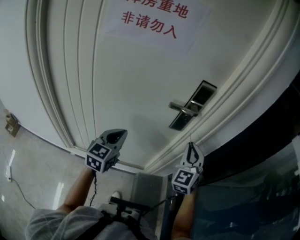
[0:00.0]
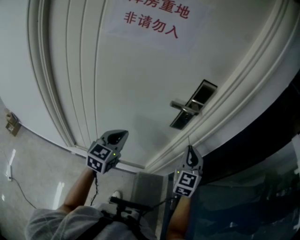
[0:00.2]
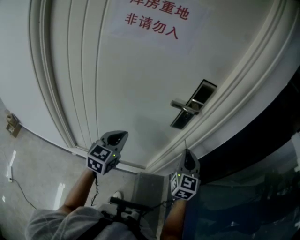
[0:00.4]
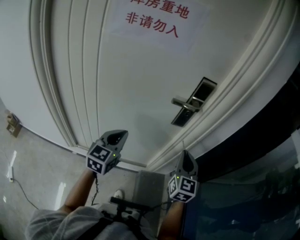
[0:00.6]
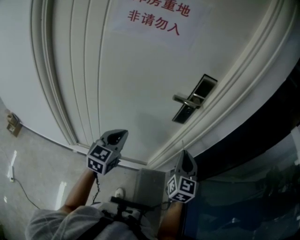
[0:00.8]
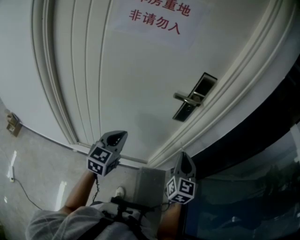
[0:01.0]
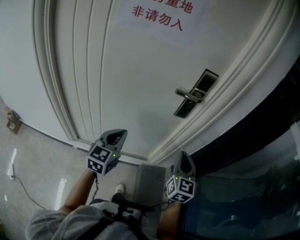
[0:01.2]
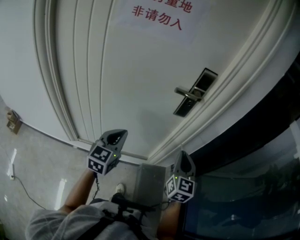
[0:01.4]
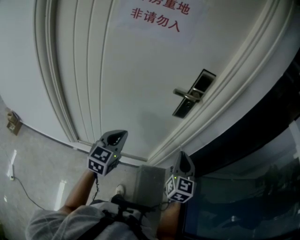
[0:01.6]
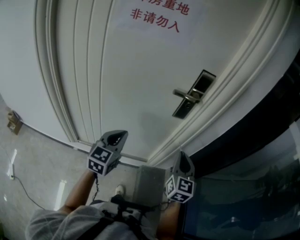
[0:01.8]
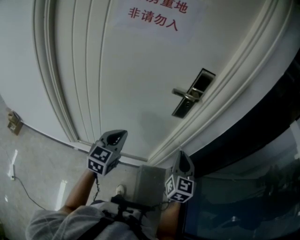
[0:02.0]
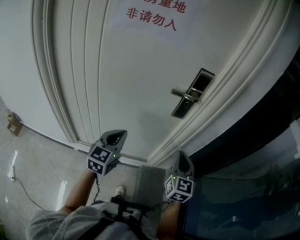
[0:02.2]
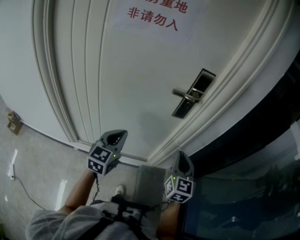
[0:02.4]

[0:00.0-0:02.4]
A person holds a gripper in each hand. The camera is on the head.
0:00.0 to 0:01.2: The right gripper heads backward and downward, covering roughly 10 cm, and swivels some 30 degrees, while the left gripper is displaced backward by about 5 cm.
0:01.2 to 0:02.4: The two grippers keep their place.

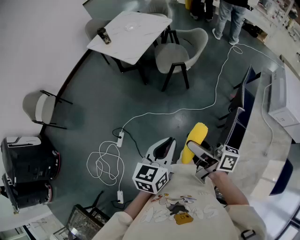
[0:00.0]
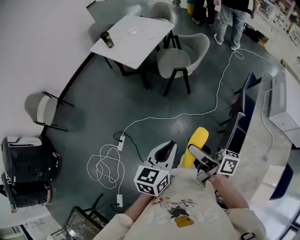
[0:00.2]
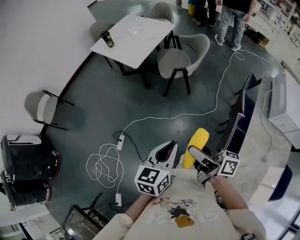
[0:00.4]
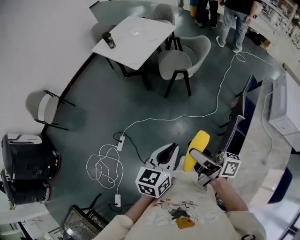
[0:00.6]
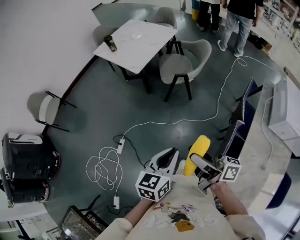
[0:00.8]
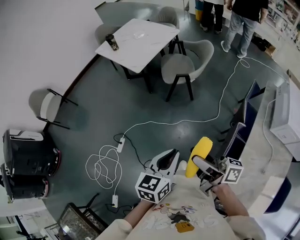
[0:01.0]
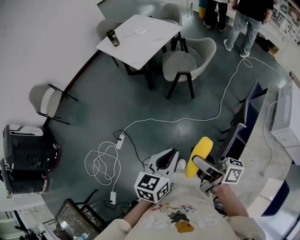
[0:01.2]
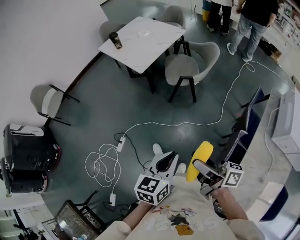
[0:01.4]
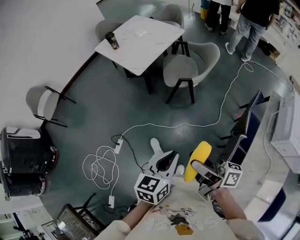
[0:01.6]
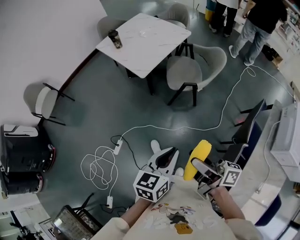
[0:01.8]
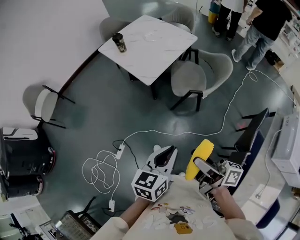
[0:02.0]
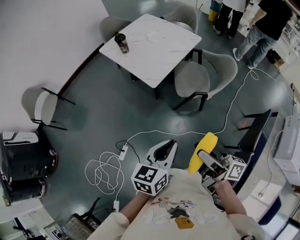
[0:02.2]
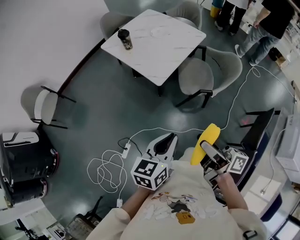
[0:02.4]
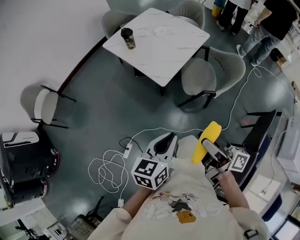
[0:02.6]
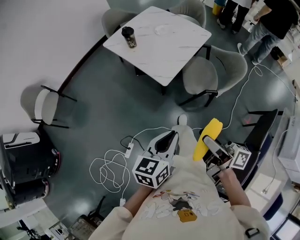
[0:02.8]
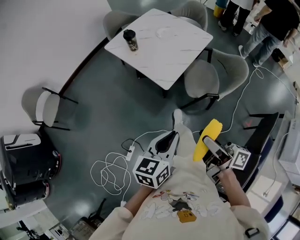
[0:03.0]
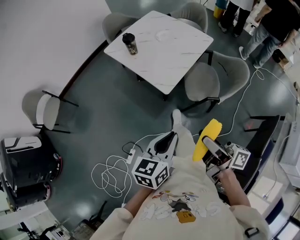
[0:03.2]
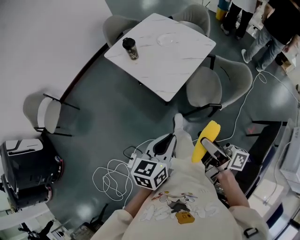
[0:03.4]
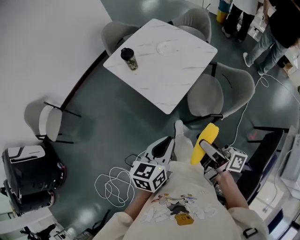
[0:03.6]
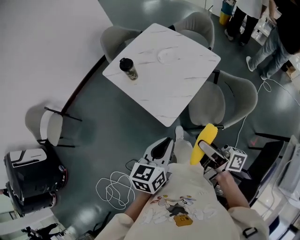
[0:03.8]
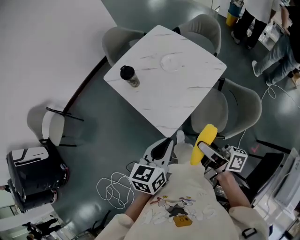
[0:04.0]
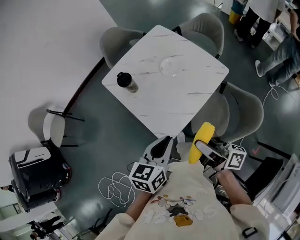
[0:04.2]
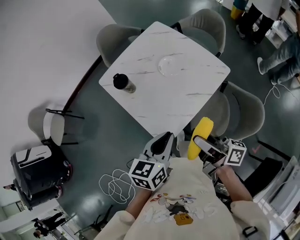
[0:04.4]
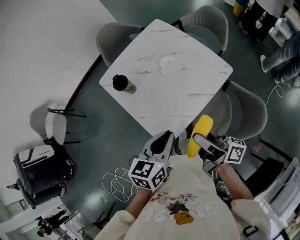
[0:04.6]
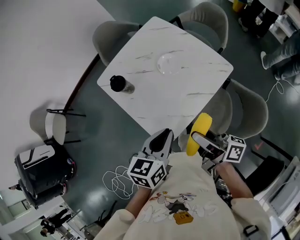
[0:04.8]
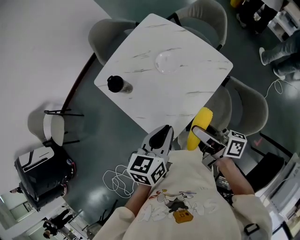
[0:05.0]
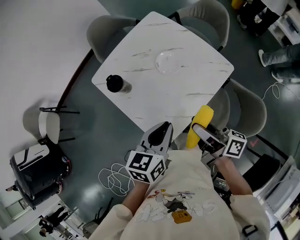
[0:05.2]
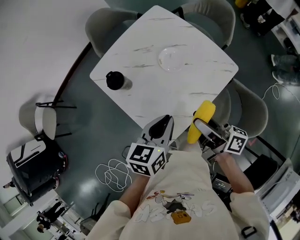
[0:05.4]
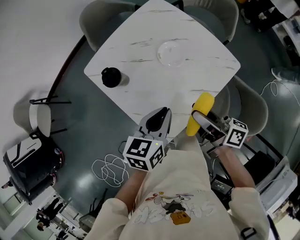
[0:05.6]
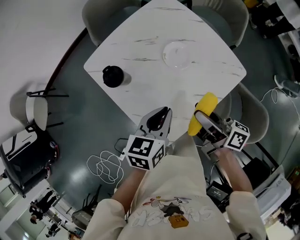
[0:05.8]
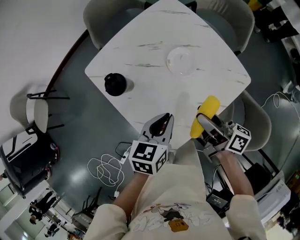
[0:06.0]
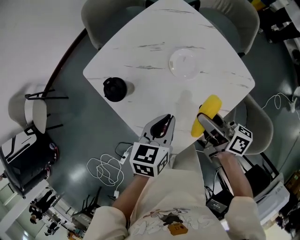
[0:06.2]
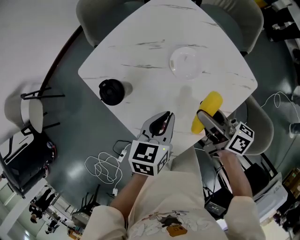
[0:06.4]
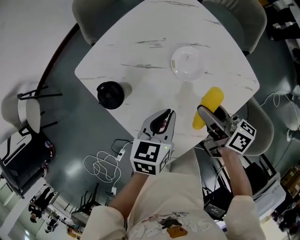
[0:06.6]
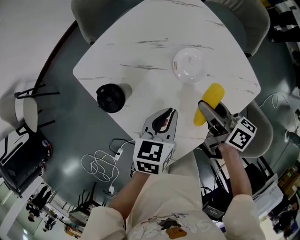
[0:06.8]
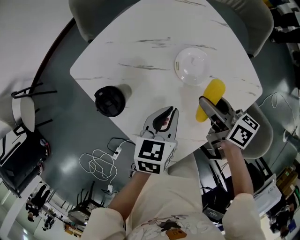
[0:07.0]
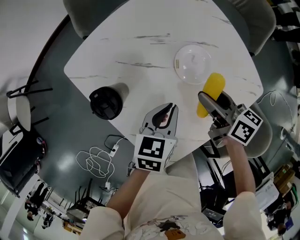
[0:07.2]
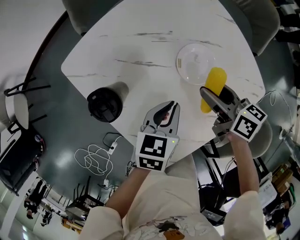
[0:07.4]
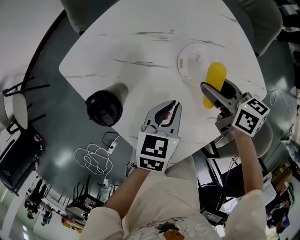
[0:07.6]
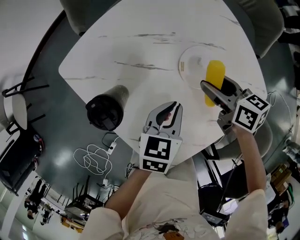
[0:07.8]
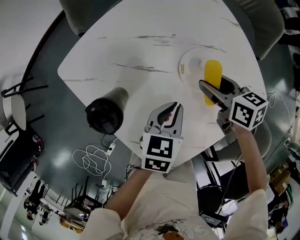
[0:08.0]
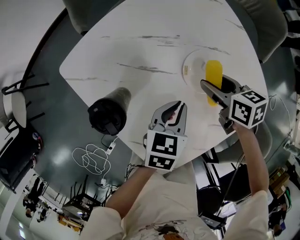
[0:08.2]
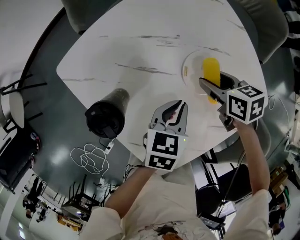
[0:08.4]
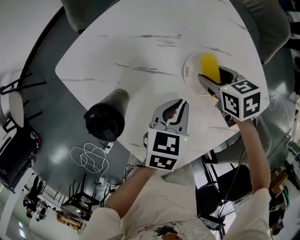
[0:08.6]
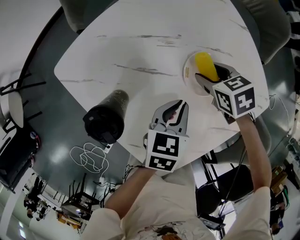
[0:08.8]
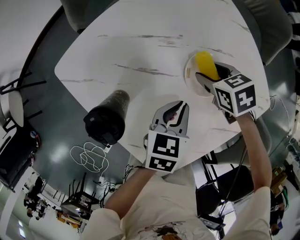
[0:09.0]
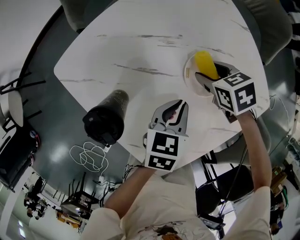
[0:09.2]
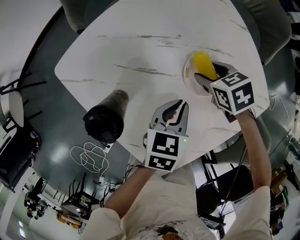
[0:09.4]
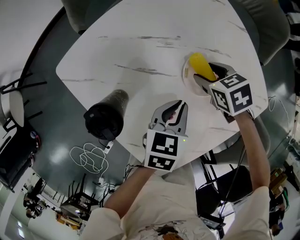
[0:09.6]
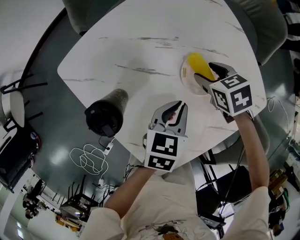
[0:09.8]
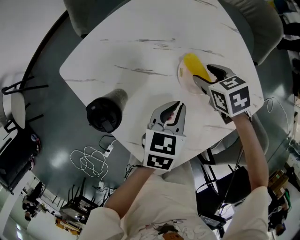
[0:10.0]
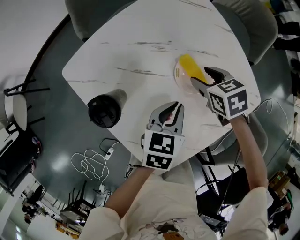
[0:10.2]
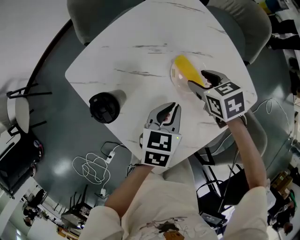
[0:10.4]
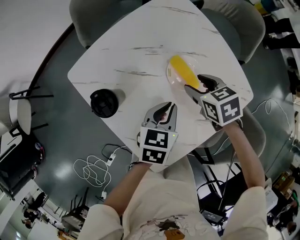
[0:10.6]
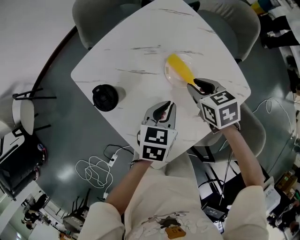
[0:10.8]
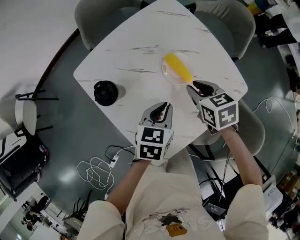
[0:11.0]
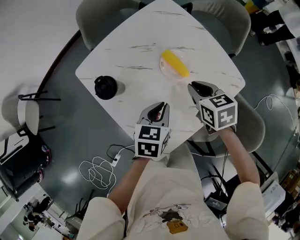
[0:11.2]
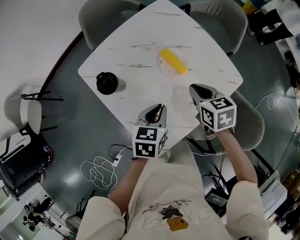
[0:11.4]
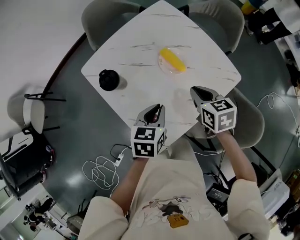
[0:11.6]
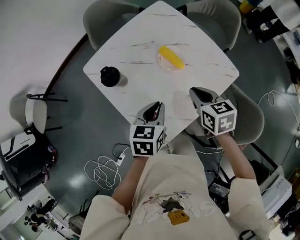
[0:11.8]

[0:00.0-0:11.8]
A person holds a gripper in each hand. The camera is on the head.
0:00.0 to 0:01.4: The right gripper heads to the right, covering roughly 5 cm, while the left gripper changes place by about 5 cm.
0:01.4 to 0:03.0: The grippers both shift forward and to the left by roughly 40 cm.
0:03.0 to 0:04.4: The pair of grippers is taken forward, roughly 40 cm.
0:04.4 to 0:06.0: The two grippers go roughly 25 cm forward and downward.
0:06.0 to 0:07.4: The right gripper heads forward and downward, covering approximately 20 cm, and rotates some 30 degrees; the left gripper moves downward and forward, about 15 cm.
0:07.4 to 0:08.8: The right gripper is displaced downward and forward by roughly 10 cm, and points its fingers approximately 30 degrees further downward, while the left gripper changes place by some 5 cm.
0:08.8 to 0:10.4: Both grippers travel together upward, about 5 cm.
0:10.4 to 0:11.8: Both grippers move backward and upward, roughly 20 cm. The right gripper turns by some 20 degrees, and closes up.

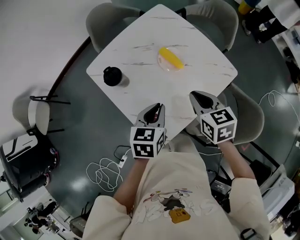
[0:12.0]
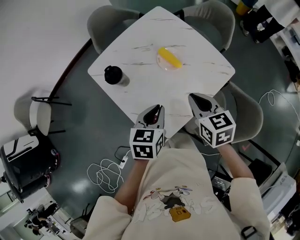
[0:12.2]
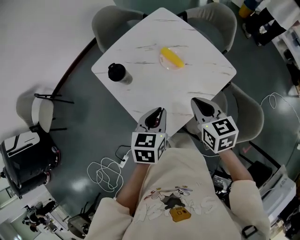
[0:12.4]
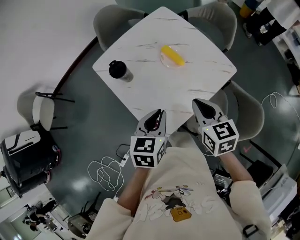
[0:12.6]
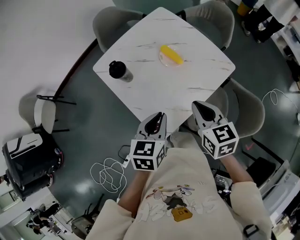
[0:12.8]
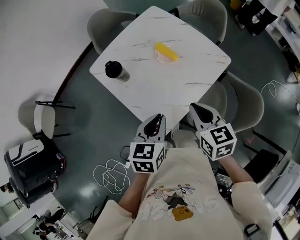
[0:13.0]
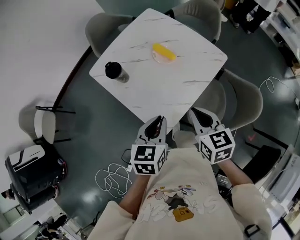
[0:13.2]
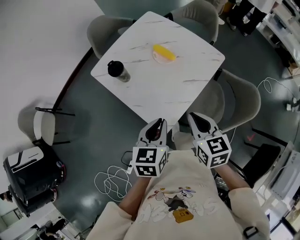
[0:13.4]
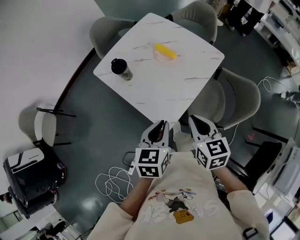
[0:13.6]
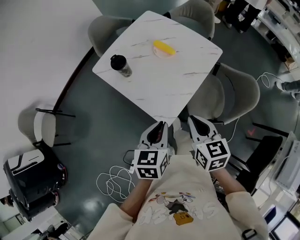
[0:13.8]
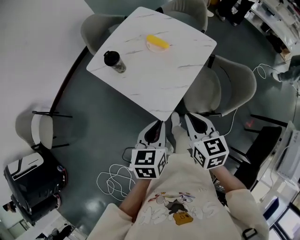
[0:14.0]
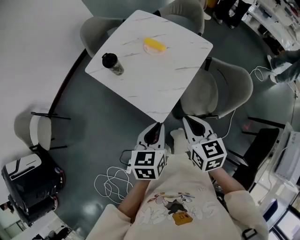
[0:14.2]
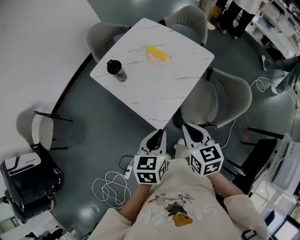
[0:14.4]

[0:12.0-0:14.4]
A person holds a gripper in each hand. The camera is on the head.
0:12.0 to 0:13.2: The right gripper goes about 15 cm backward; the left gripper goes roughly 15 cm backward and upward.
0:13.2 to 0:14.4: The grippers both shift backward by roughly 15 cm.

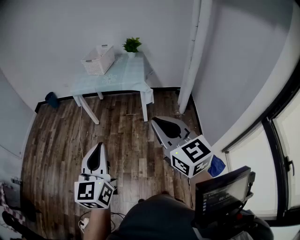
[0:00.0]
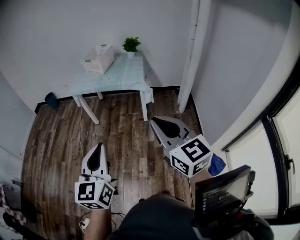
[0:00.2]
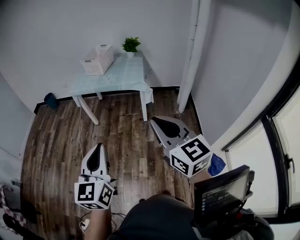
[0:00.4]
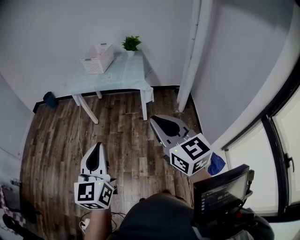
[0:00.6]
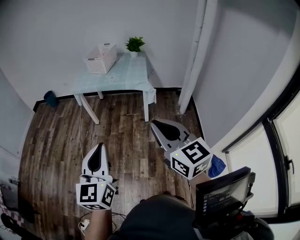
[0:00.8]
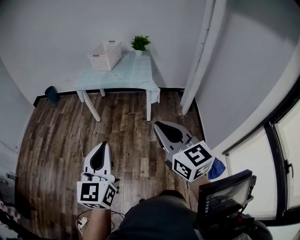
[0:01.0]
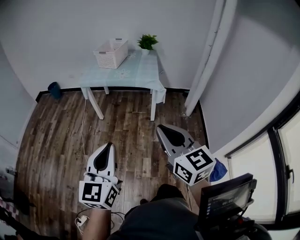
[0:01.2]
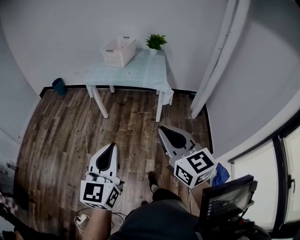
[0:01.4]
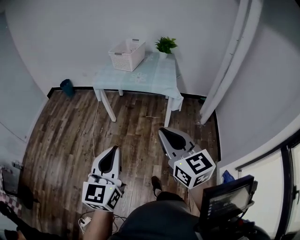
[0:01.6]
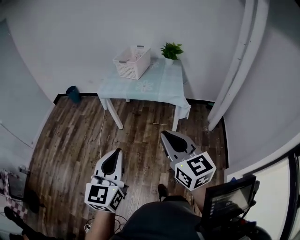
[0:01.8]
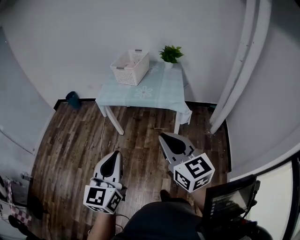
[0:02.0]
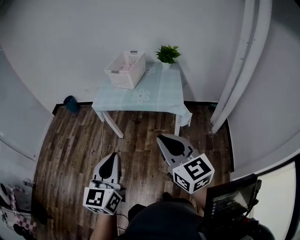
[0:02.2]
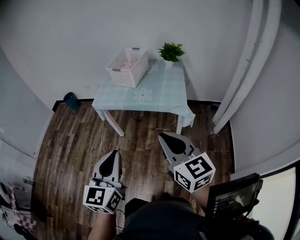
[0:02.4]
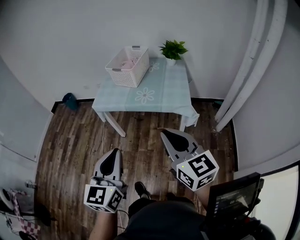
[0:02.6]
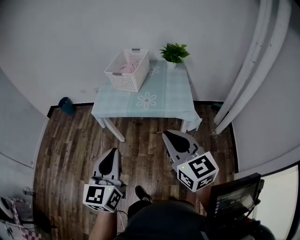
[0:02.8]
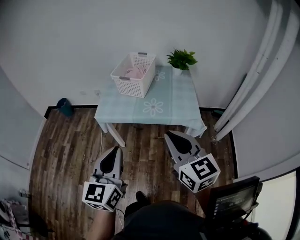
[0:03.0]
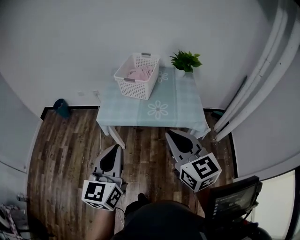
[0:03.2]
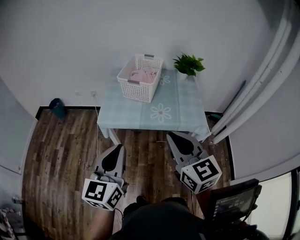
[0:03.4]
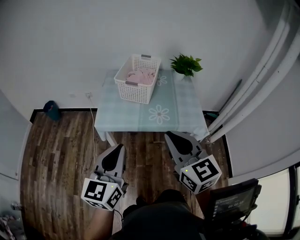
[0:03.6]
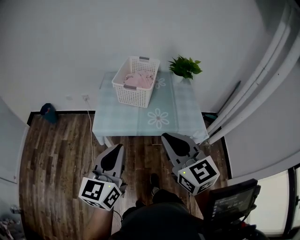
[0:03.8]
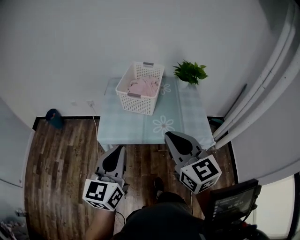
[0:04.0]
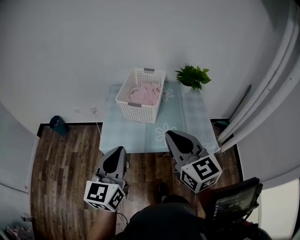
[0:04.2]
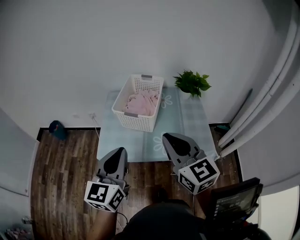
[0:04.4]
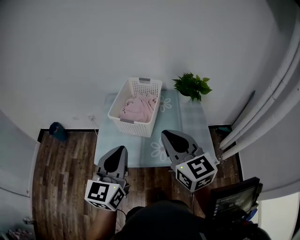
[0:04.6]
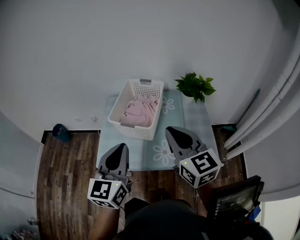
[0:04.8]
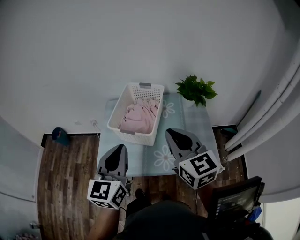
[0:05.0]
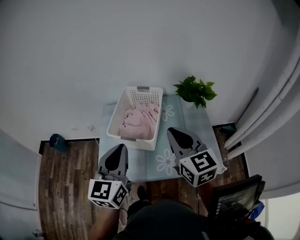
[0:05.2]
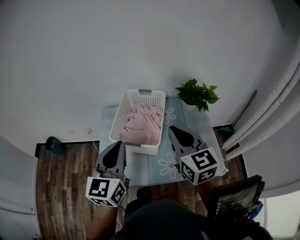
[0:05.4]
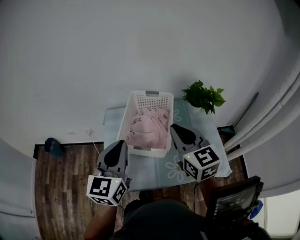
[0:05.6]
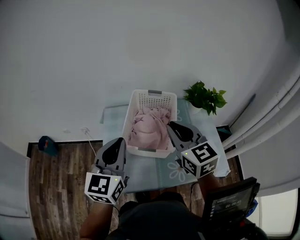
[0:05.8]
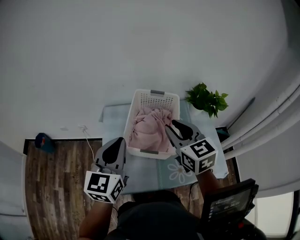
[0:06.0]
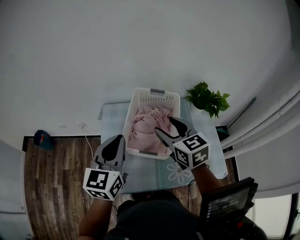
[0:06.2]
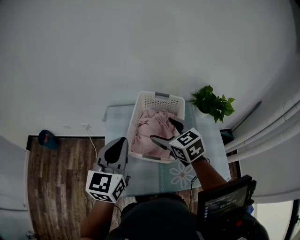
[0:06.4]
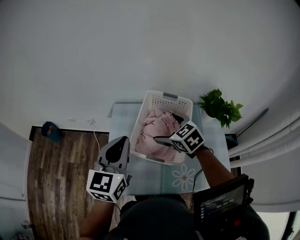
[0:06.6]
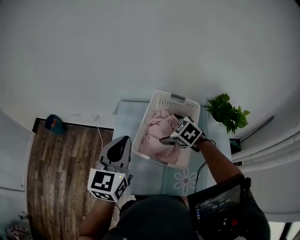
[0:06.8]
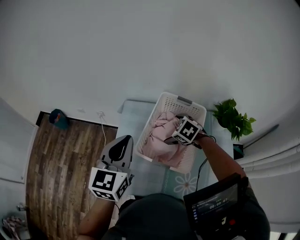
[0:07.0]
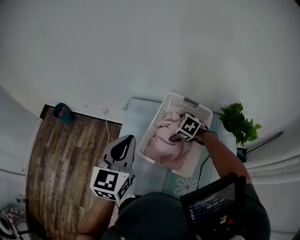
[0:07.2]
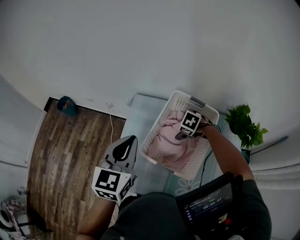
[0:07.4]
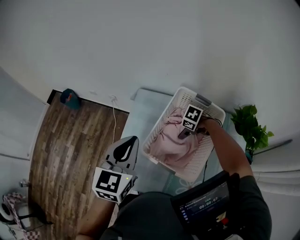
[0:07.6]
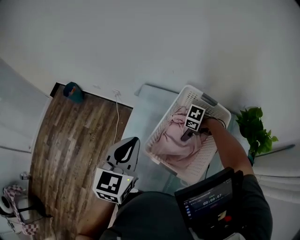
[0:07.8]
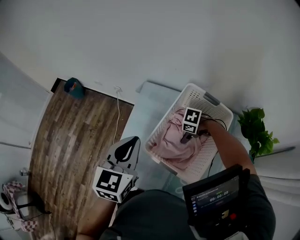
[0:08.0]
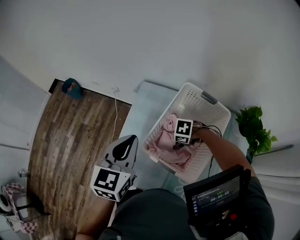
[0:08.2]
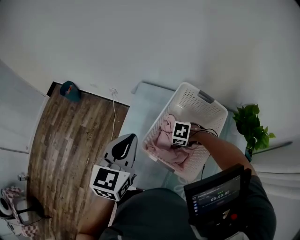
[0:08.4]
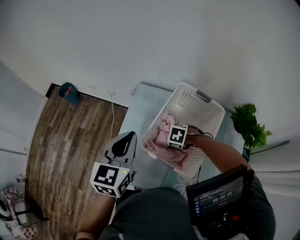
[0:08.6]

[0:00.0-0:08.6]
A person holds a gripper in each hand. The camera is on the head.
0:00.0 to 0:01.4: Both grippers travel together to the left and forward, roughly 10 cm.
0:01.4 to 0:02.8: Both grippers move forward, some 35 cm.
0:02.8 to 0:04.4: The right gripper shifts about 35 cm forward and to the left; the left gripper heads forward, covering some 35 cm.
0:04.4 to 0:05.8: The grippers both shift forward by some 25 cm.
0:05.8 to 0:07.2: The left gripper changes place by about 10 cm, while the right gripper heads downward, covering roughly 25 cm, tilts its fingers roughly 50 degrees downward, and opens up.
0:07.2 to 0:08.6: The right gripper is displaced downward by roughly 10 cm, turns by some 30 degrees, and closes.
